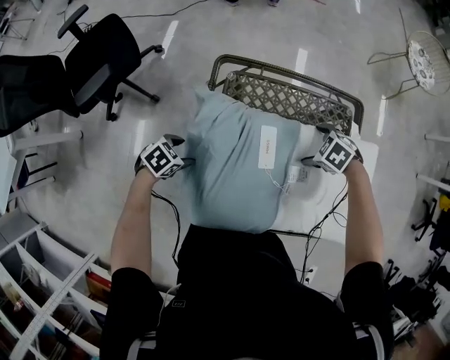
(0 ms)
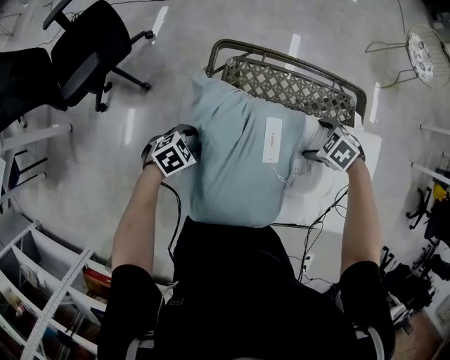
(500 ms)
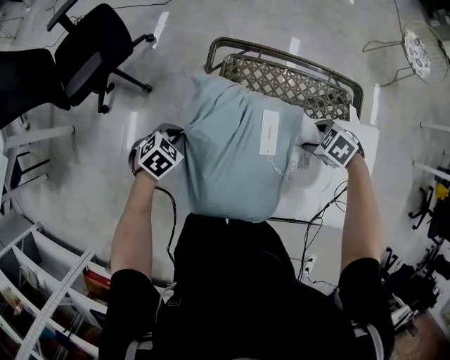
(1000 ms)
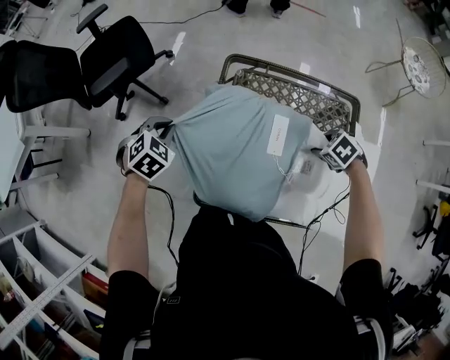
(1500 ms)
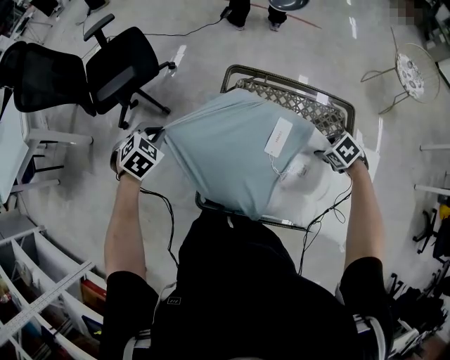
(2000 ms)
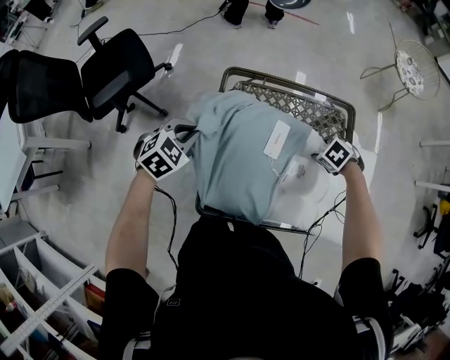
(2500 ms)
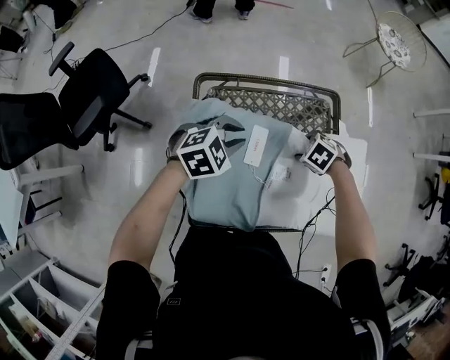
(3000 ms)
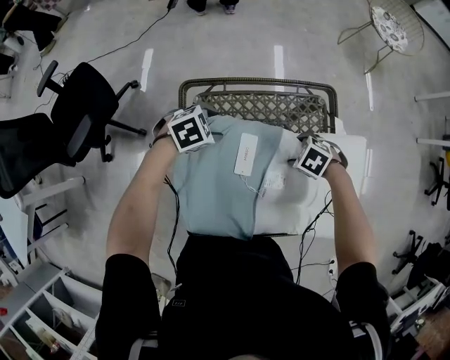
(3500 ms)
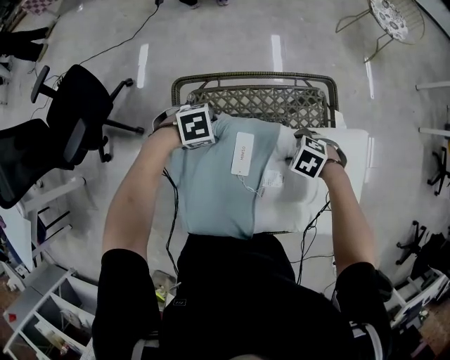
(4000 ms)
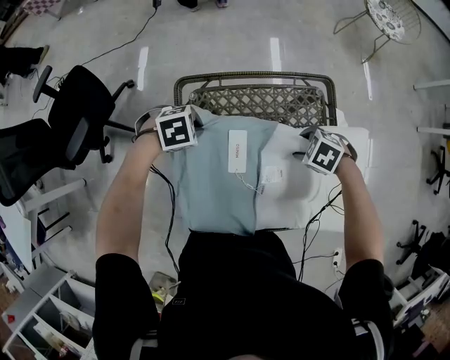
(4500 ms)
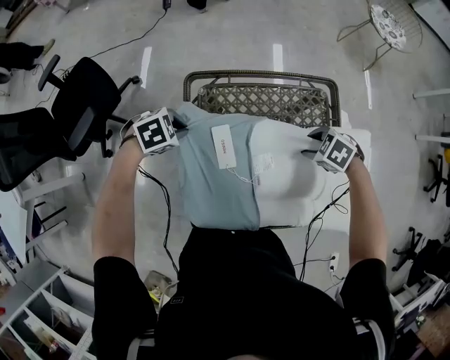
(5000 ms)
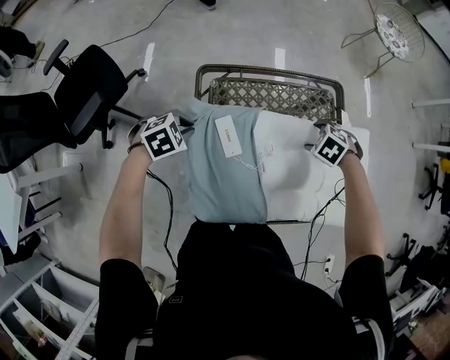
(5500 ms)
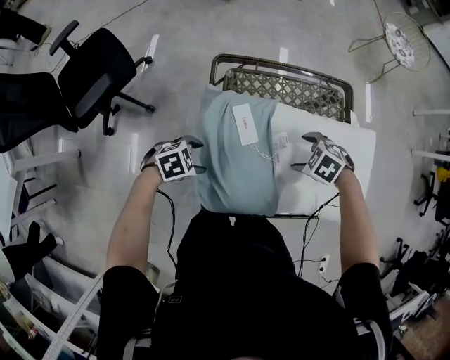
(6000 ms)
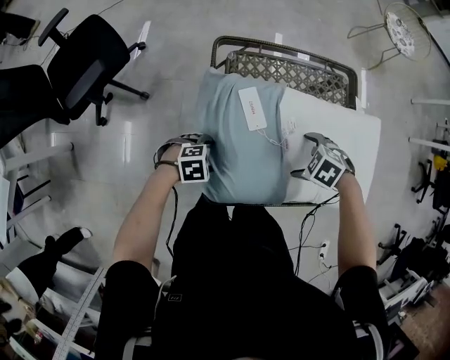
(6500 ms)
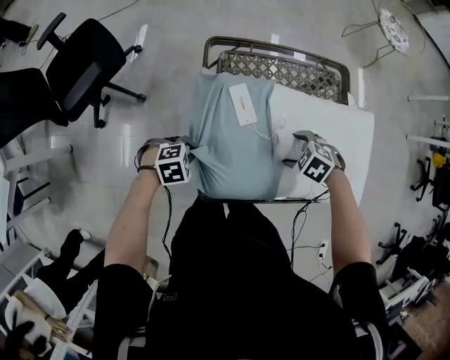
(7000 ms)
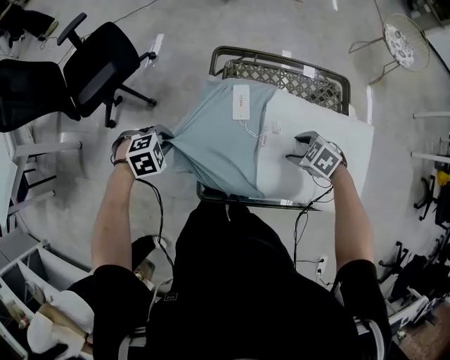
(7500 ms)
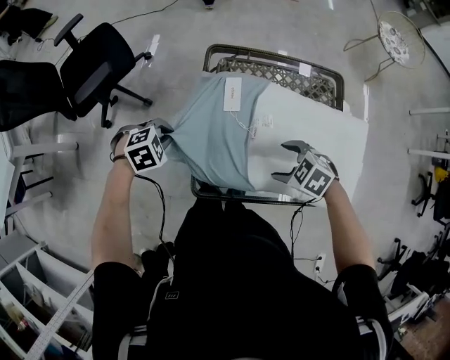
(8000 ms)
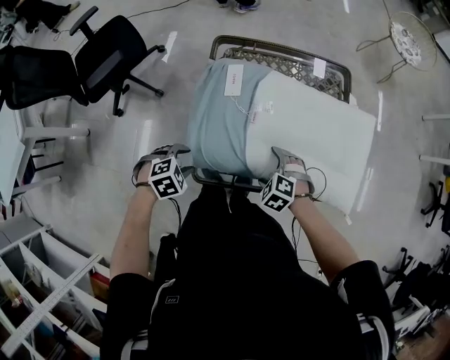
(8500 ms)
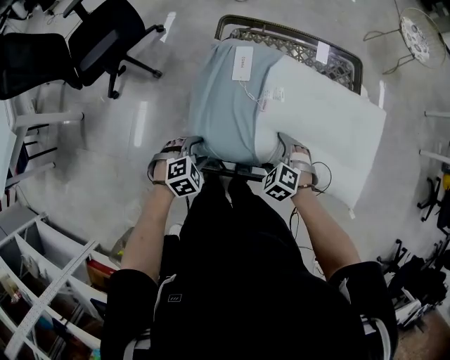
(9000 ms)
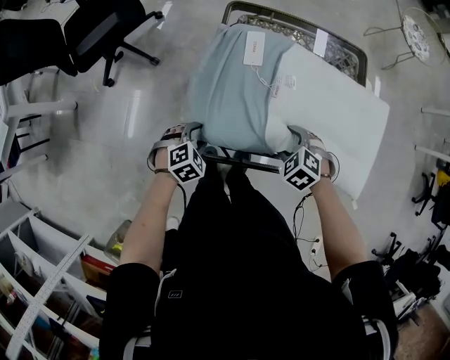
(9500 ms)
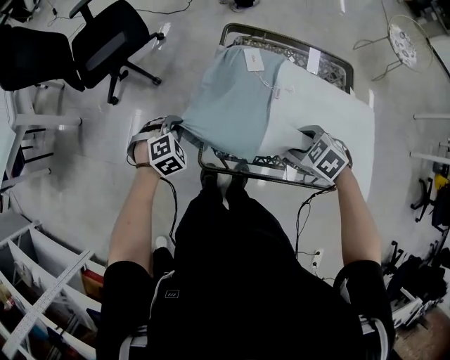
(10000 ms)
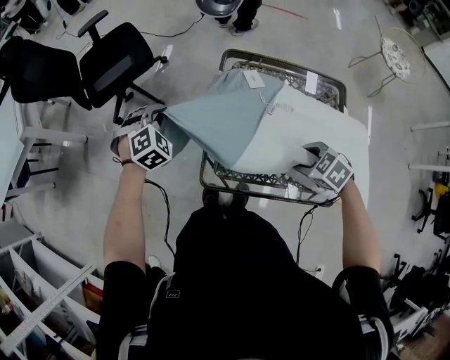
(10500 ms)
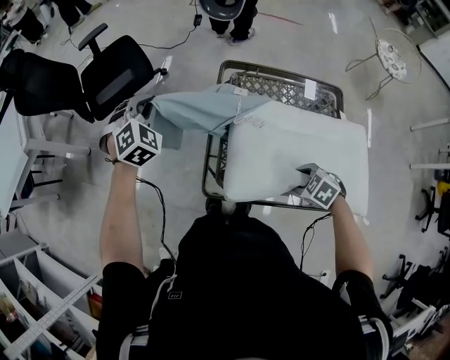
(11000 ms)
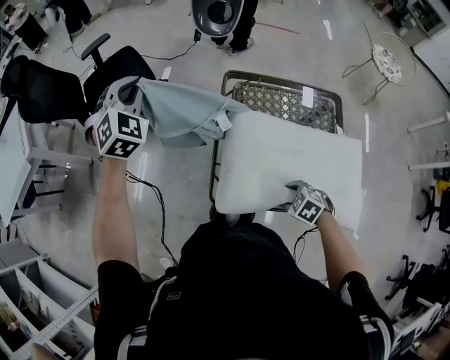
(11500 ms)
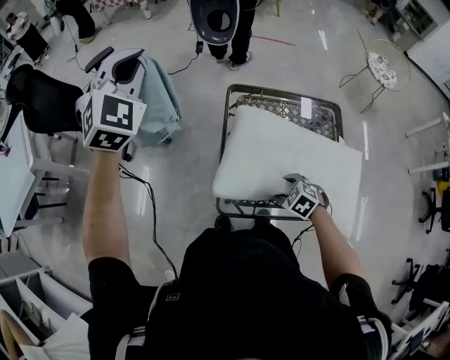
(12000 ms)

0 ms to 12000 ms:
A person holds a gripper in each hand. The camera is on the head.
0 ms to 2000 ms: The left gripper travels upward by roughly 15 cm, turns by approximately 30 degrees, and closes. The right gripper shifts by some 5 cm, and closes.
2000 ms to 4000 ms: The left gripper shifts by some 35 cm, changes its angle by about 60 degrees, and opens its fingers; the right gripper shifts by some 5 cm.
4000 ms to 6000 ms: The right gripper ends up roughly 10 cm from where it was, while the left gripper changes place by roughly 25 cm, and closes, then opens again.
6000 ms to 8000 ms: The left gripper ends up roughly 10 cm from where it was, turns by approximately 20 degrees, and closes its fingers. The right gripper shifts by some 10 cm.
8000 ms to 10000 ms: The left gripper goes downward and returns, about 10 cm each way, turns by roughly 20 degrees, and opens, then closes once more, while the right gripper moves about 10 cm downward and comes back.
10000 ms to 12000 ms: The left gripper is displaced upward and forward by about 50 cm, and tips its fingers upward by about 50 degrees, while the right gripper moves to the left, about 5 cm.

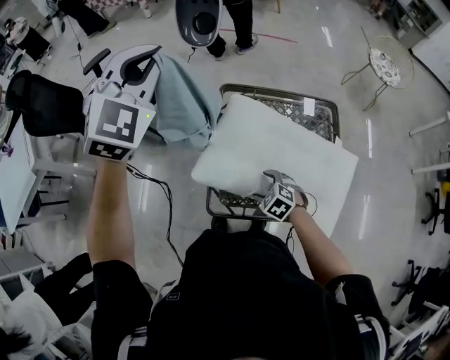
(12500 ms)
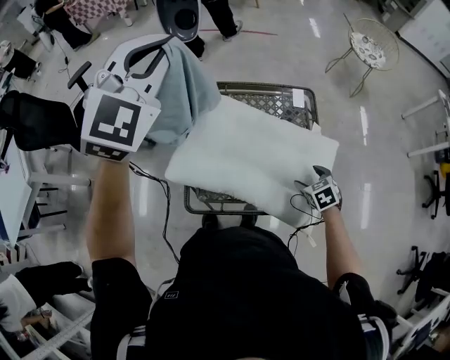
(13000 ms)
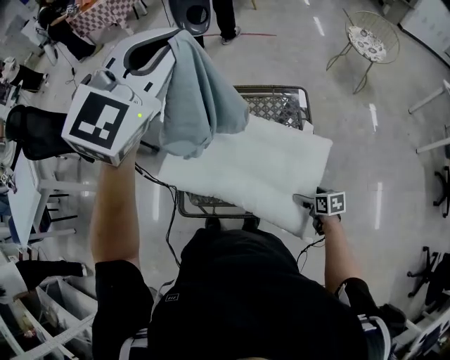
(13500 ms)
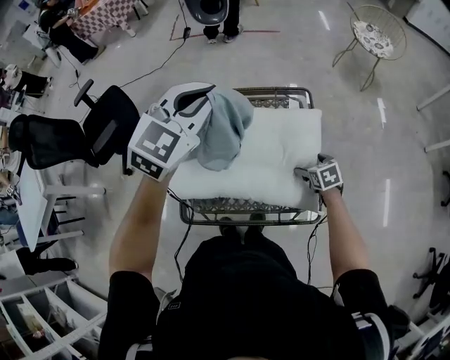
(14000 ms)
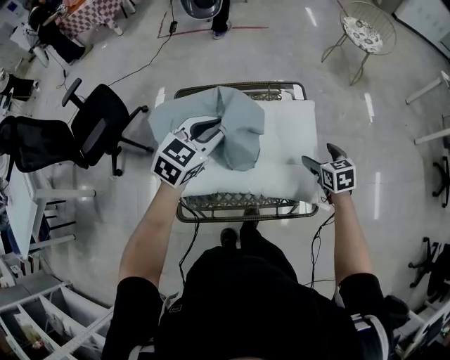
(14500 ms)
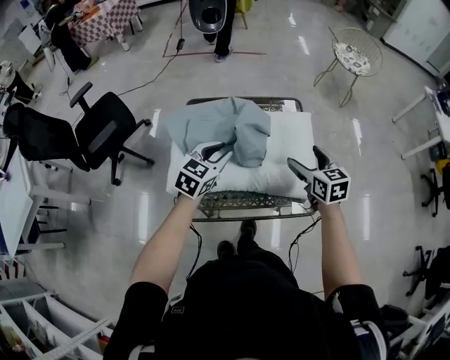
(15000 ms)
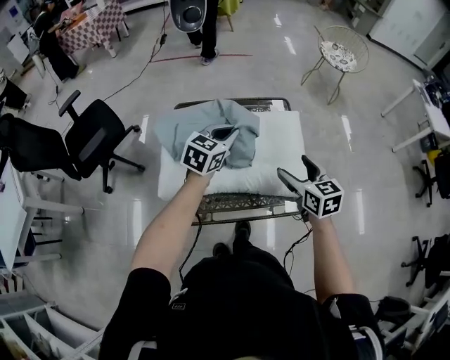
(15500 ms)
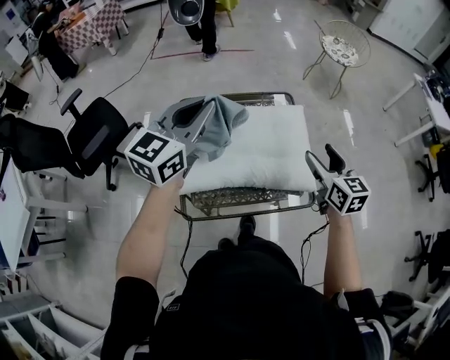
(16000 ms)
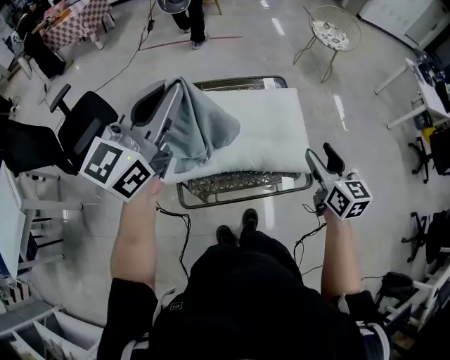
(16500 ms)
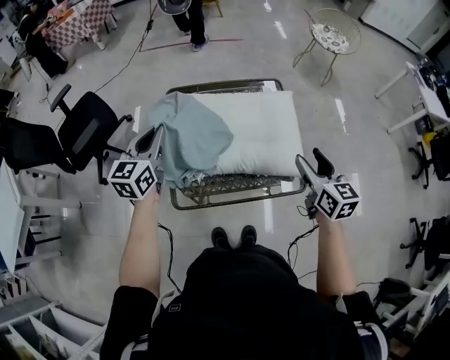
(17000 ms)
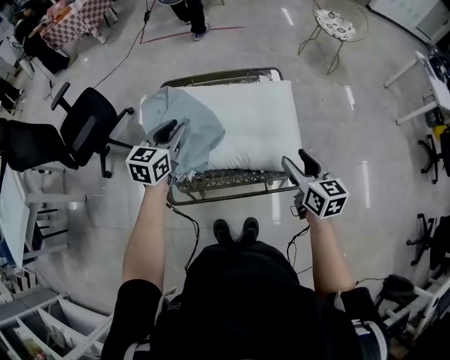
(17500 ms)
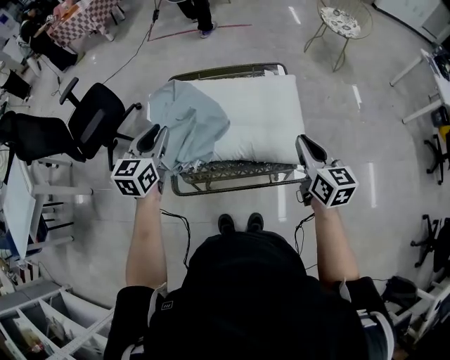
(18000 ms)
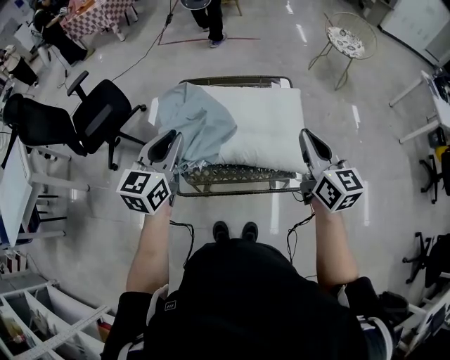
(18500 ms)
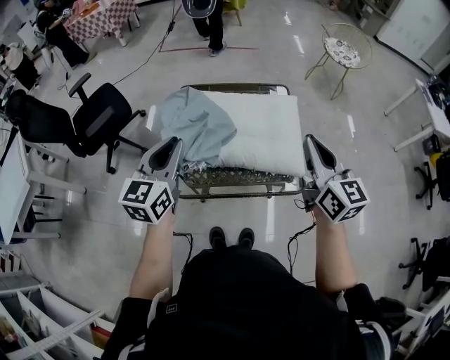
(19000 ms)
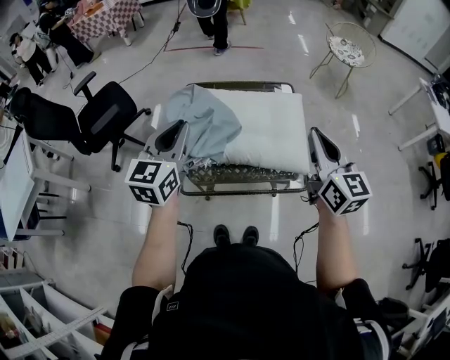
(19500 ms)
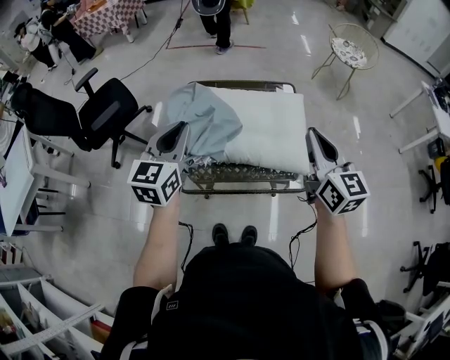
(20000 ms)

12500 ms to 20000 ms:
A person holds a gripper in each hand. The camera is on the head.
12500 ms to 14500 ms: The left gripper changes place by some 40 cm, and turns by approximately 50 degrees. Meanwhile the right gripper moves roughly 40 cm, and rotates around the line of its fingers by some 40 degrees, clockwise from behind.
14500 ms to 16500 ms: Both grippers travel together upward and backward, about 30 cm. The left gripper points its fingers approximately 40 degrees further upward; the right gripper turns by some 30 degrees.
16500 ms to 18000 ms: The left gripper shifts approximately 25 cm downward, and changes its angle by roughly 40 degrees. Meanwhile the right gripper closes.
18000 ms to 20000 ms: The right gripper moves upward, approximately 15 cm, while the left gripper heads upward and backward, covering approximately 10 cm.

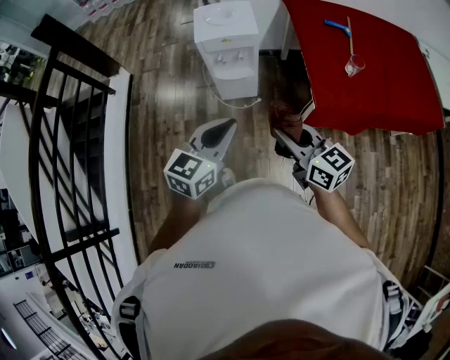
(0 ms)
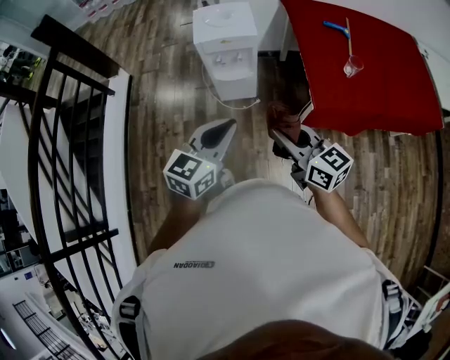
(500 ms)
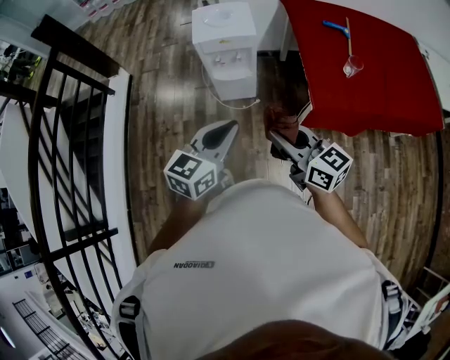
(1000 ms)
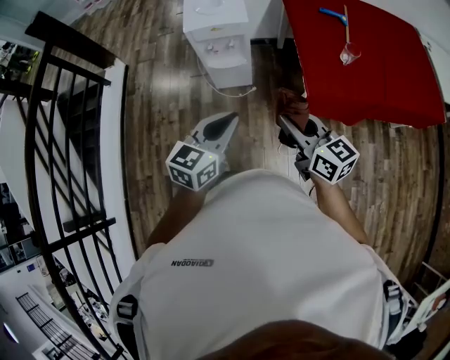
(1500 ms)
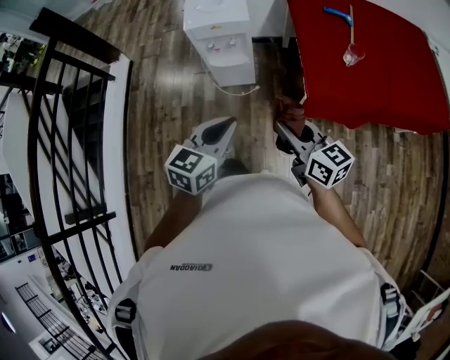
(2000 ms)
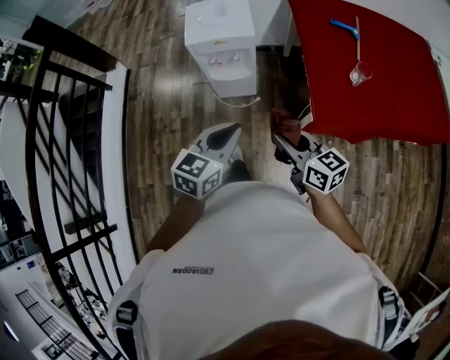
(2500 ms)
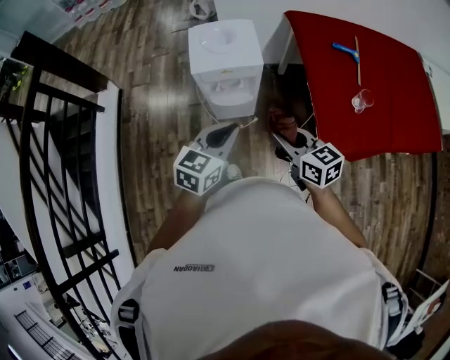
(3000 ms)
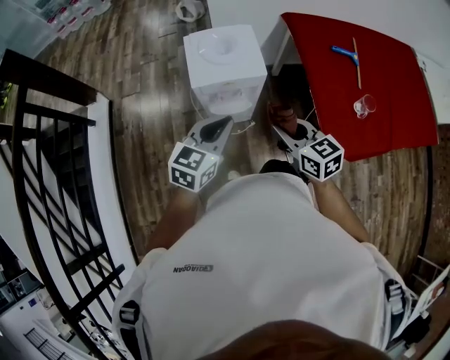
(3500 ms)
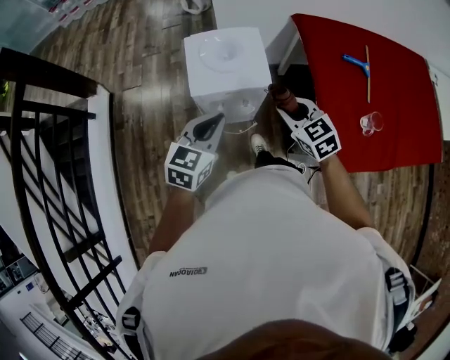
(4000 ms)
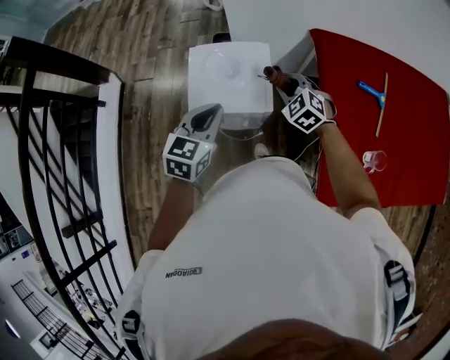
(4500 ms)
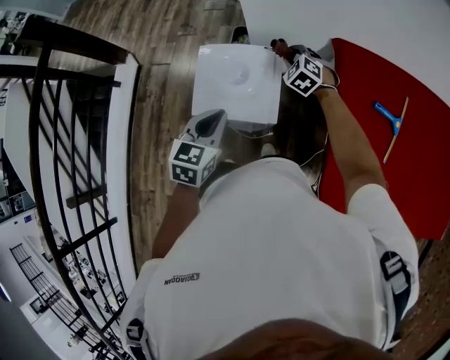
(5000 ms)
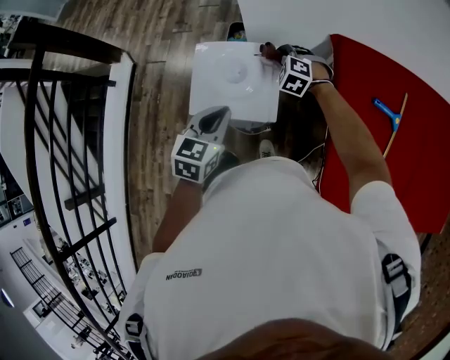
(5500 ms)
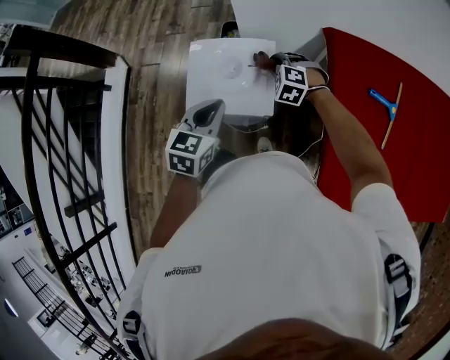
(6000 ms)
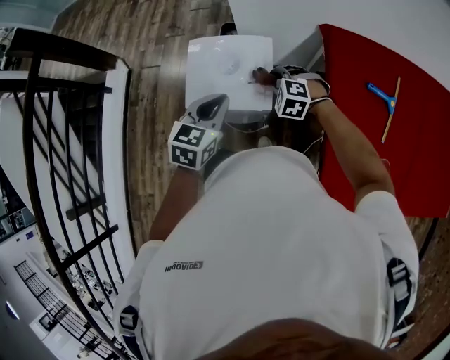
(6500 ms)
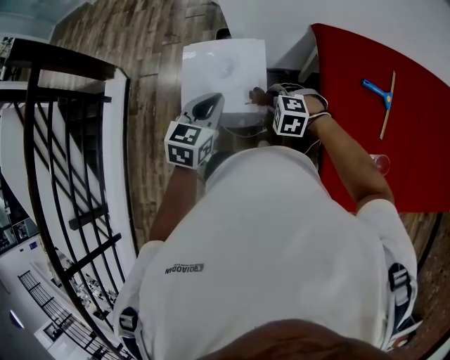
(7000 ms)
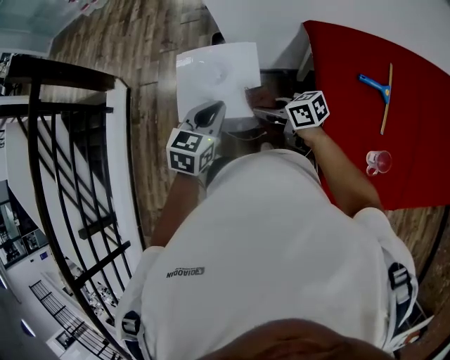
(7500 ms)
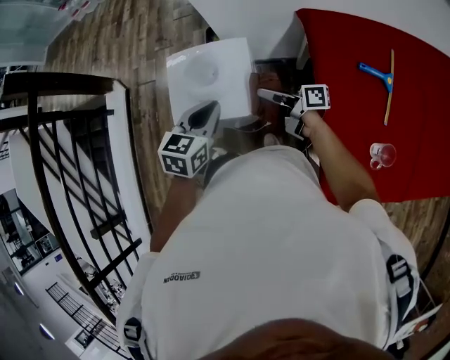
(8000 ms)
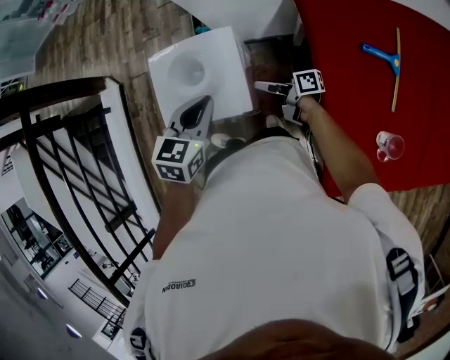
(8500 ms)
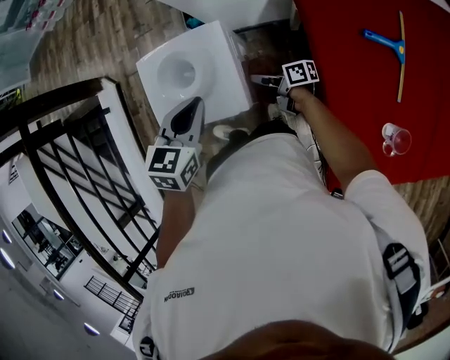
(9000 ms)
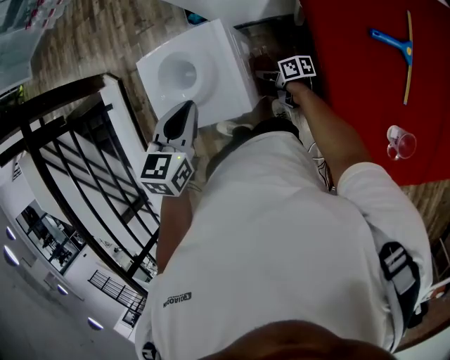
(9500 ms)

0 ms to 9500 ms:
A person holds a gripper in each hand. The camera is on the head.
0 ms to 2000 ms: Both grippers move to the right, approximately 5 cm.
2000 ms to 4000 ms: Both grippers move forward, about 40 cm. The right gripper rotates approximately 40 degrees.
4000 ms to 5500 ms: The left gripper goes approximately 10 cm forward, while the right gripper heads forward and downward, covering some 30 cm, and rolls counterclockwise, seen from behind, by approximately 50 degrees.
5500 ms to 7500 ms: The right gripper shifts some 20 cm backward, and twists roughly 70 degrees clockwise, seen from behind.
7500 ms to 9500 ms: The right gripper is displaced downward by about 25 cm, and turns by approximately 40 degrees.
